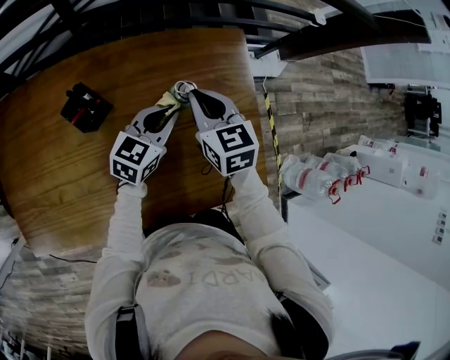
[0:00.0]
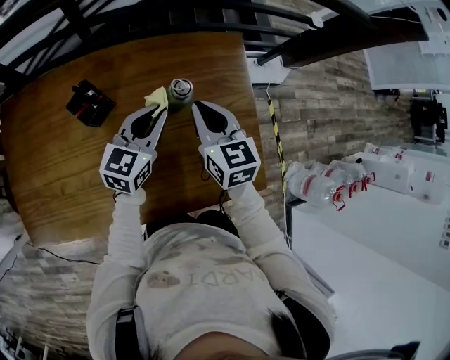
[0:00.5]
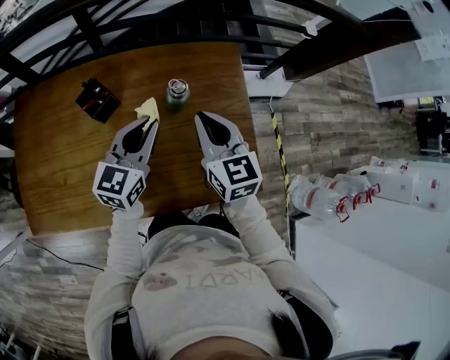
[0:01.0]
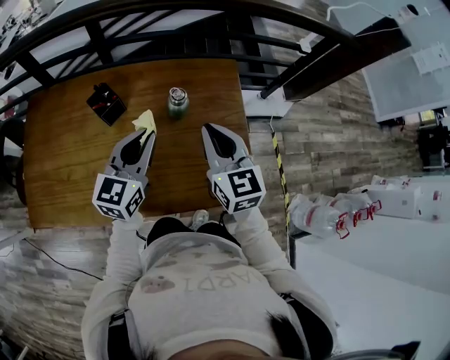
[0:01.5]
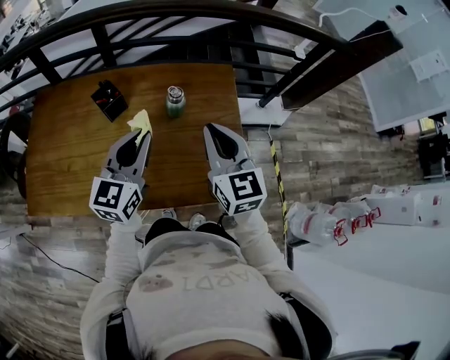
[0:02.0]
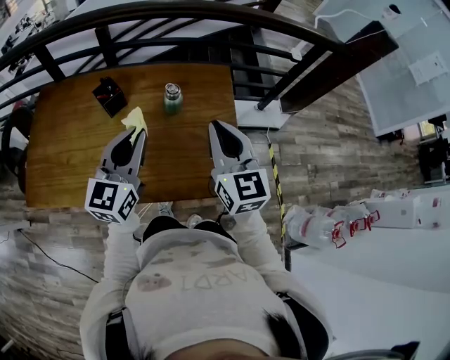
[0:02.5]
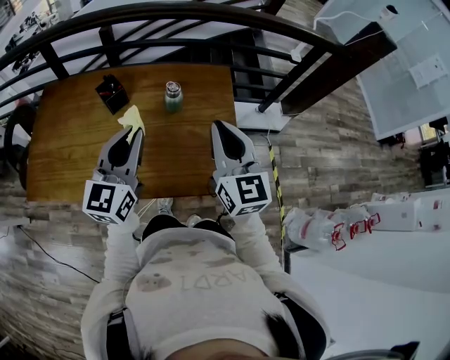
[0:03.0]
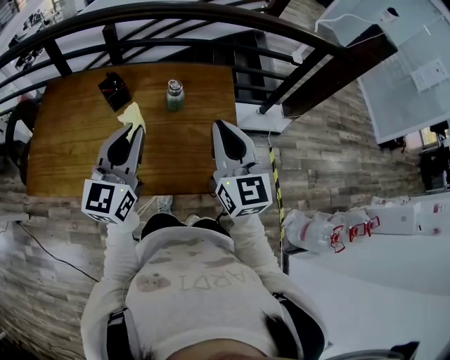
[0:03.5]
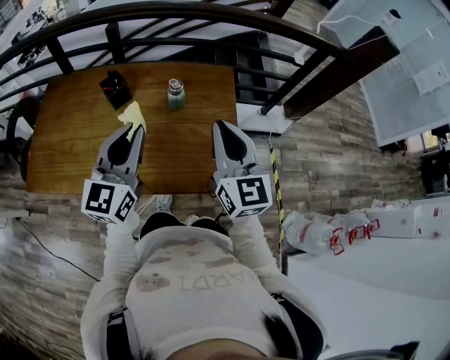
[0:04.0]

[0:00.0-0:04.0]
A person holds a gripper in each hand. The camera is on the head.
0:00.0 to 0:02.0: The right gripper moves backward, upward and to the right, about 25 cm, and swivels approximately 20 degrees. The left gripper moves upward and backward, approximately 25 cm, and rotates approximately 30 degrees.
0:02.0 to 0:04.0: Both grippers move backward and upward, about 10 cm.

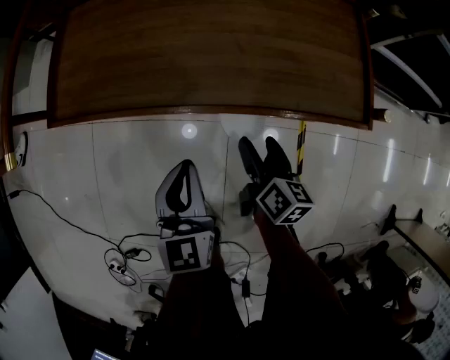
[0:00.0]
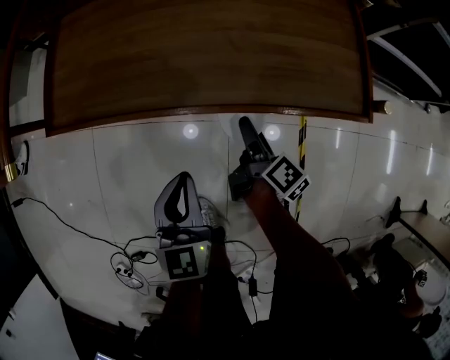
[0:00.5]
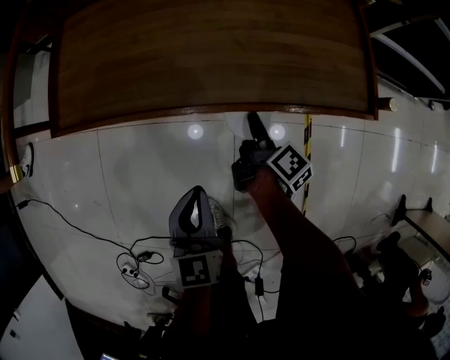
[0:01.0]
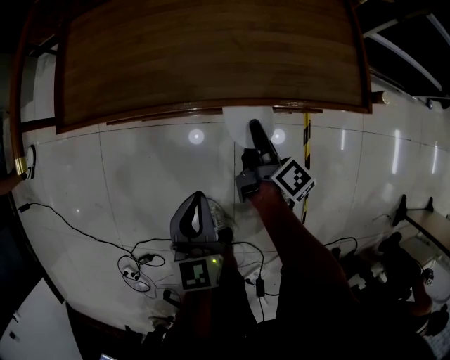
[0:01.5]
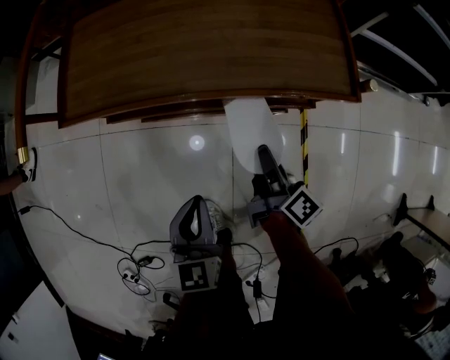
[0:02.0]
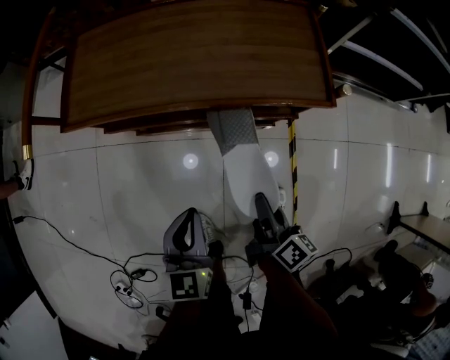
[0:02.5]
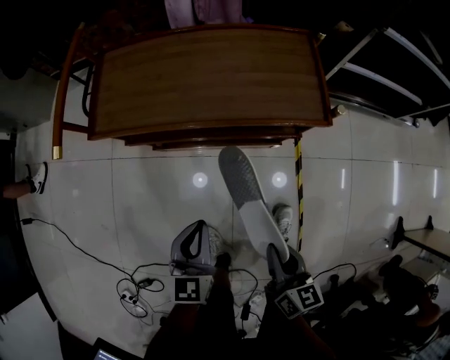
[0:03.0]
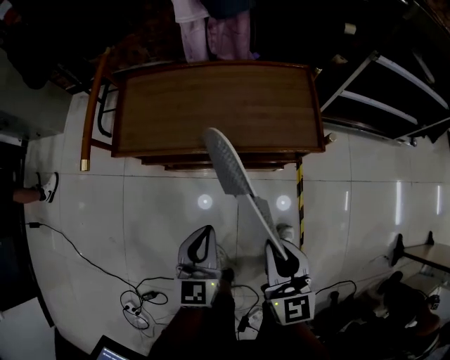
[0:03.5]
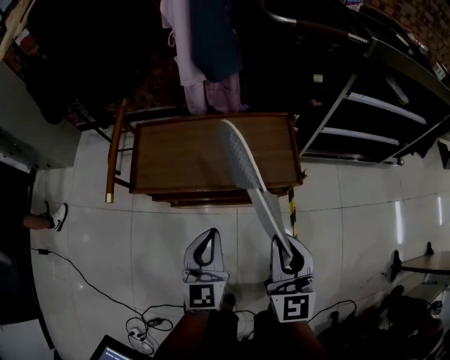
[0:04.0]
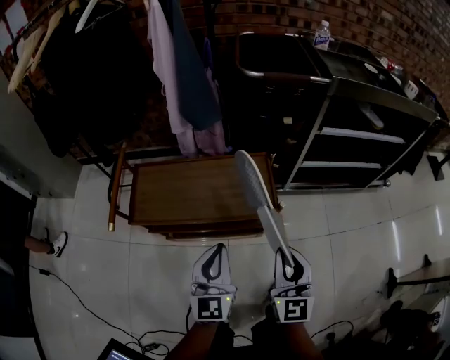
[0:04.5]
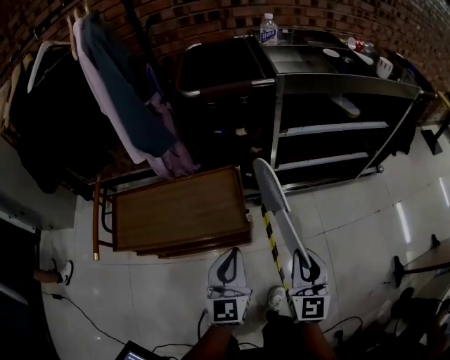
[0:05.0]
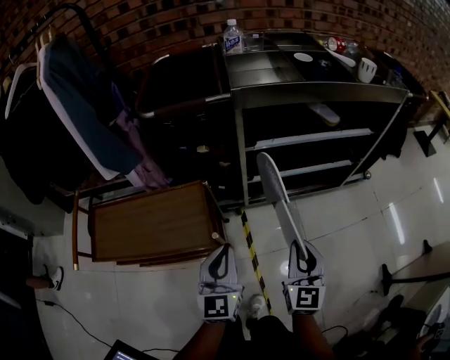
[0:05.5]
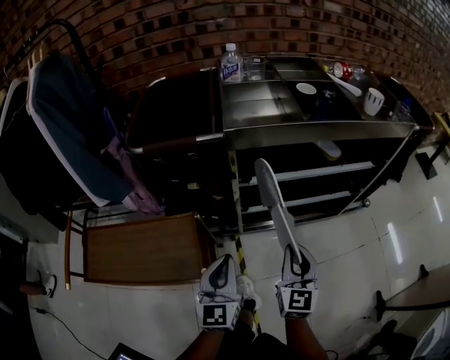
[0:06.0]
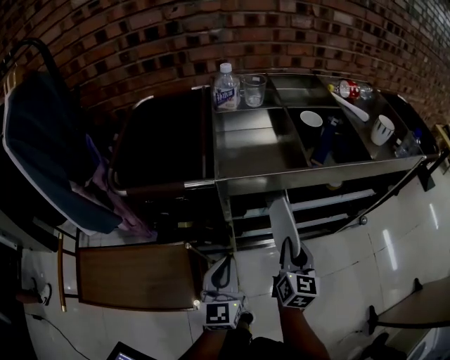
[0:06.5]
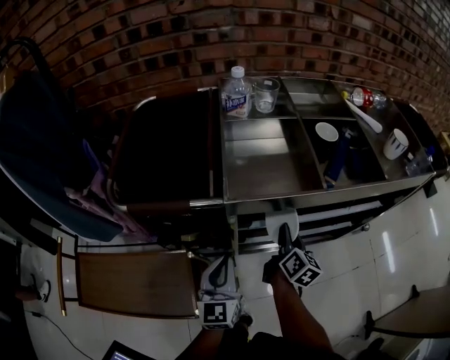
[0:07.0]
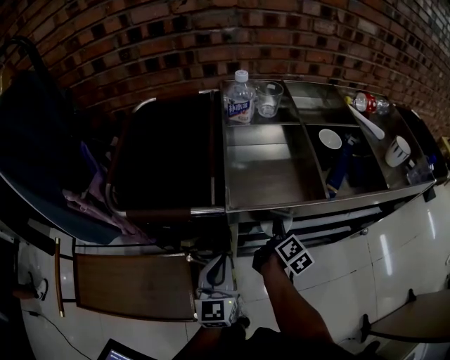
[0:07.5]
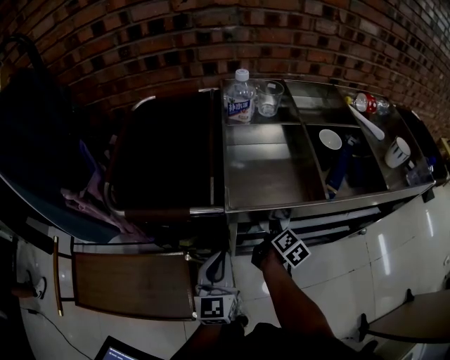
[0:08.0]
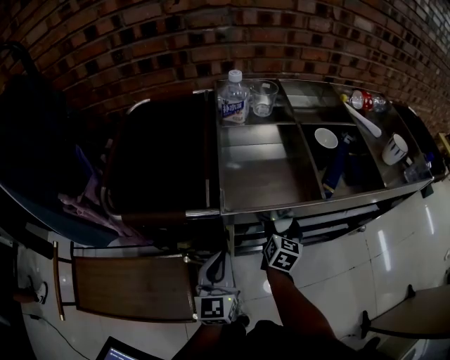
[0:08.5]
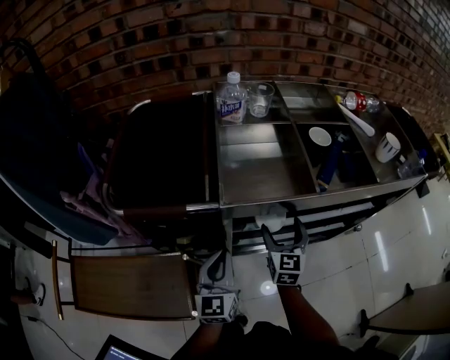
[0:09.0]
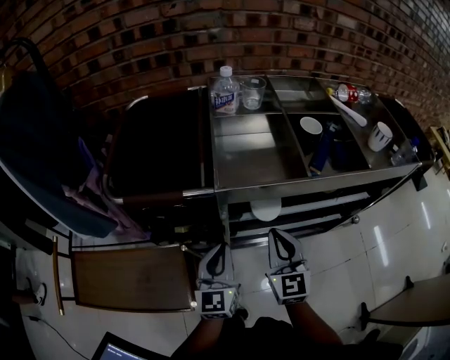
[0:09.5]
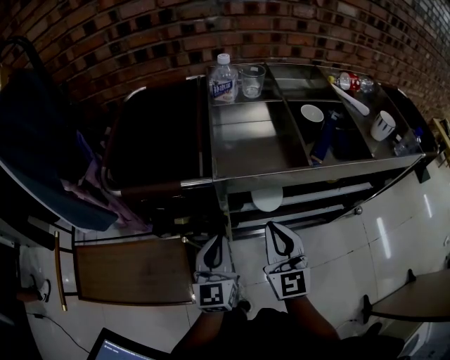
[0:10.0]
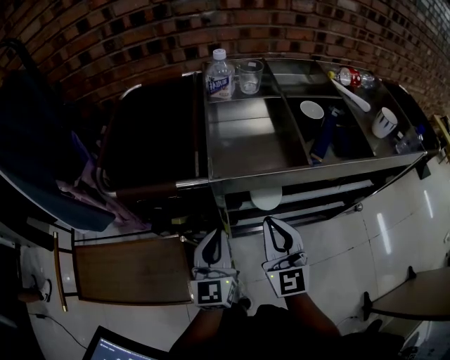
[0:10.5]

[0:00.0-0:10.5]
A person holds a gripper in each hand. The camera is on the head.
0:00.0 to 0:02.0: The right gripper moves backward, roughly 5 cm, turns by roughly 30 degrees, and closes up, while the left gripper moves backward, approximately 10 cm.
0:02.0 to 0:04.0: The left gripper is displaced upward by roughly 25 cm, while the right gripper is displaced upward by some 35 cm, and twists some 70 degrees counterclockwise, seen from behind.
0:04.0 to 0:06.5: The two grippers travel together, to the right and forward, roughly 60 cm. The right gripper turns by approximately 30 degrees.
0:06.5 to 0:08.5: The right gripper is displaced forward and downward by approximately 20 cm, and opens its fingers. Meanwhile the left gripper shifts some 10 cm forward.
0:08.5 to 0:10.5: The right gripper goes roughly 25 cm upward, backward and to the left, swivels approximately 40 degrees, and closes.

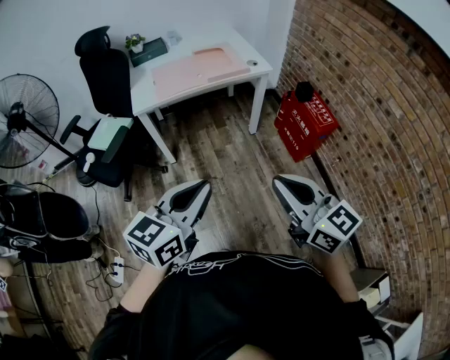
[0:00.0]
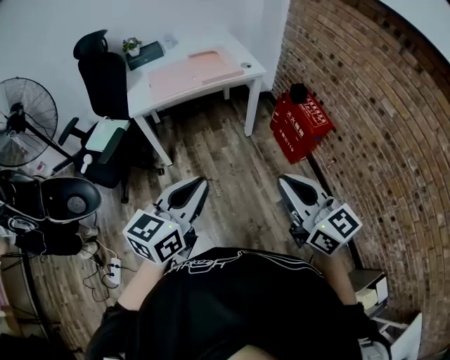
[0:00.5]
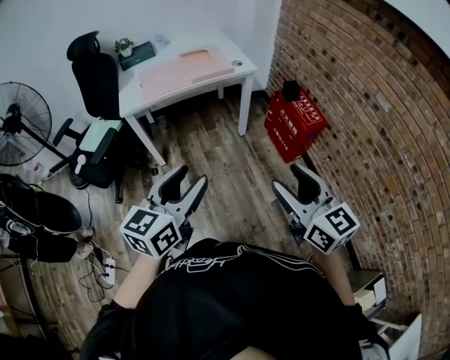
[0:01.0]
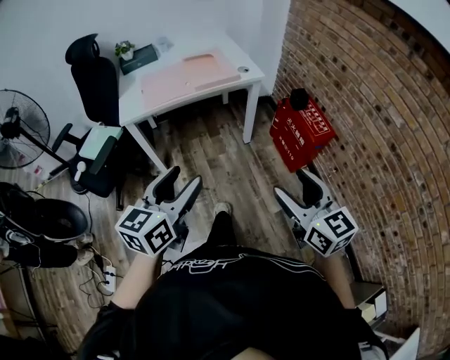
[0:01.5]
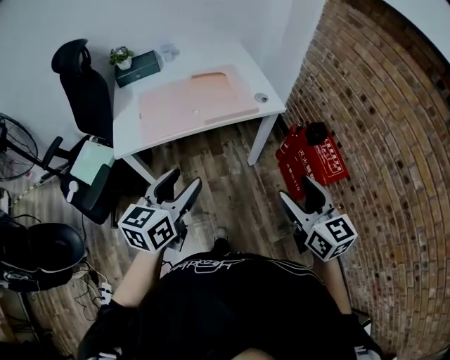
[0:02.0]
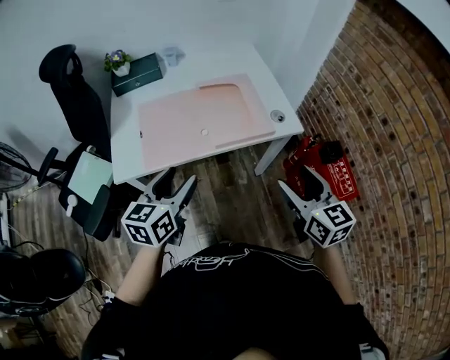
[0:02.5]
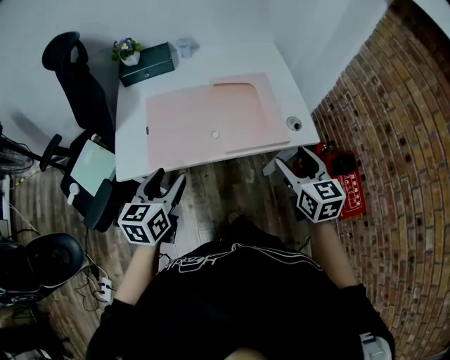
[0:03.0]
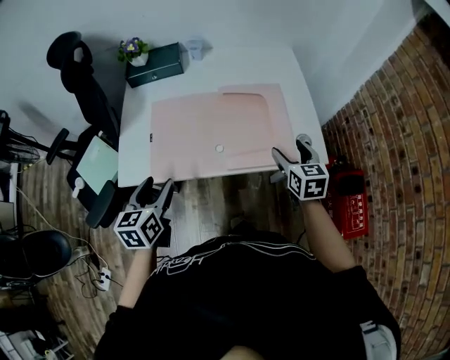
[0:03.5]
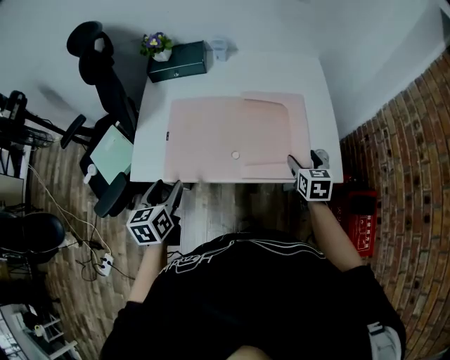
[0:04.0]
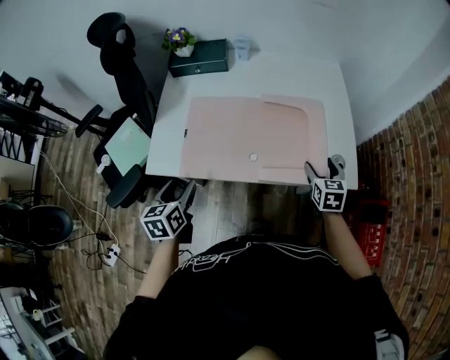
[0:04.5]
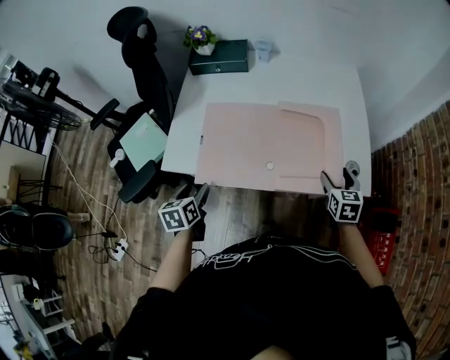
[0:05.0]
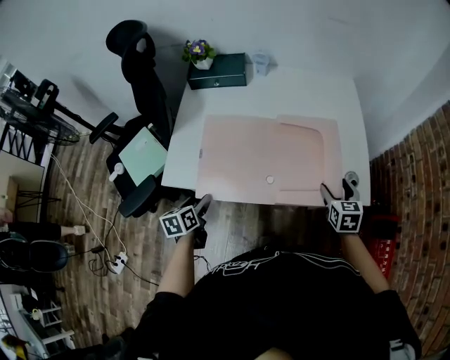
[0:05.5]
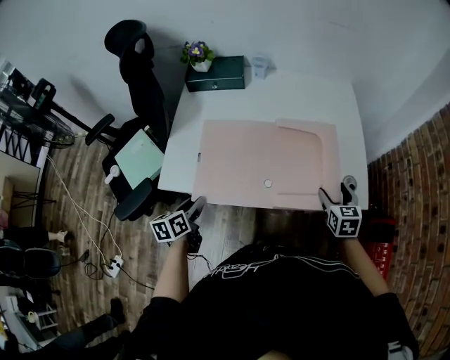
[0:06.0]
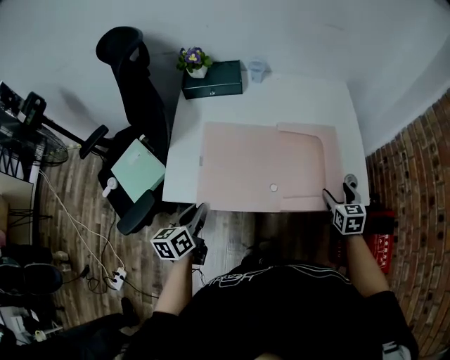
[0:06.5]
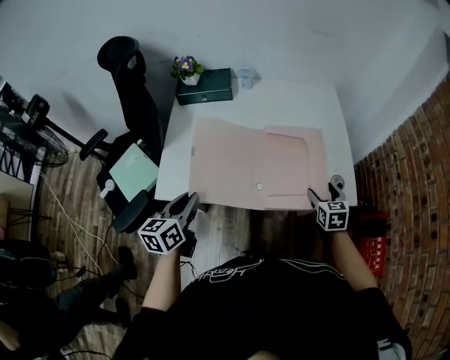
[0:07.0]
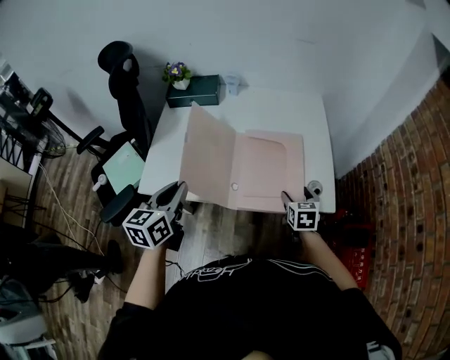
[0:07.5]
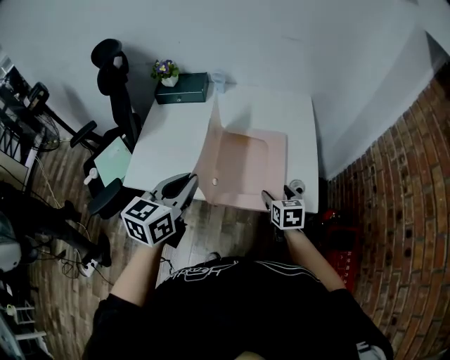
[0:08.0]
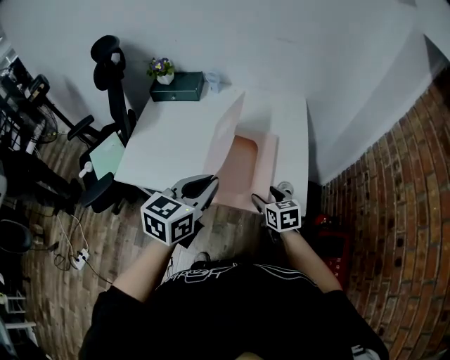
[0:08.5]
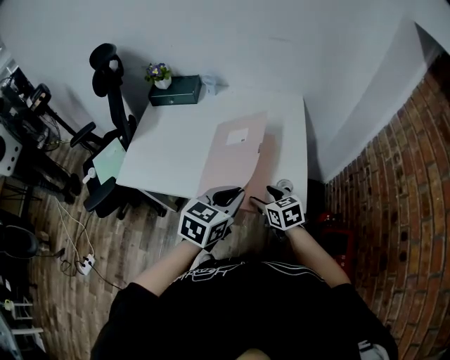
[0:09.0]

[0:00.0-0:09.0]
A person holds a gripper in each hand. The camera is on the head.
0:00.0 to 0:02.0: The grippers both shift forward by some 30 cm. The left gripper opens. Meanwhile the right gripper opens its fingers.
0:02.0 to 0:04.5: The left gripper shifts roughly 30 cm forward, downward and to the left, and swivels roughly 50 degrees, while the right gripper heads forward and downward, covering some 50 cm, and turns by roughly 30 degrees.
0:04.5 to 0:07.0: The left gripper shifts approximately 5 cm upward, and closes its fingers.
0:07.0 to 0:09.0: The right gripper rotates about 30 degrees, while the left gripper travels to the right by roughly 35 cm, and changes its angle by approximately 20 degrees.

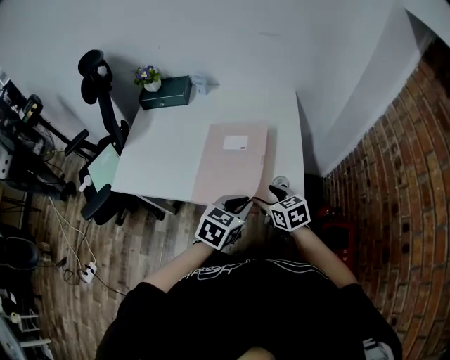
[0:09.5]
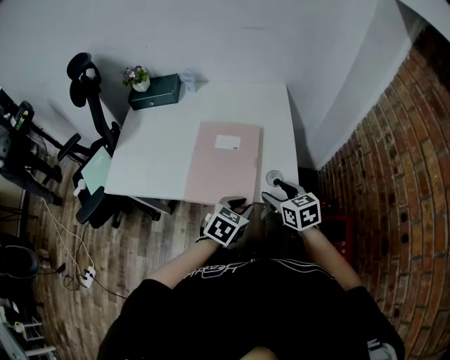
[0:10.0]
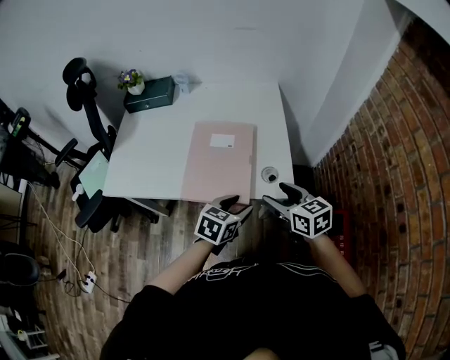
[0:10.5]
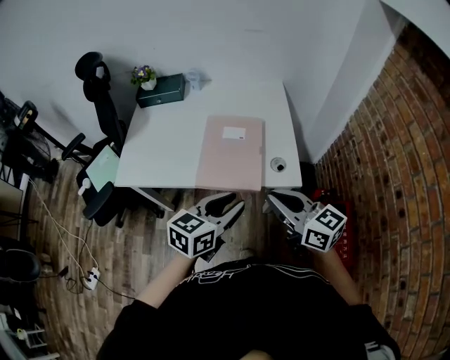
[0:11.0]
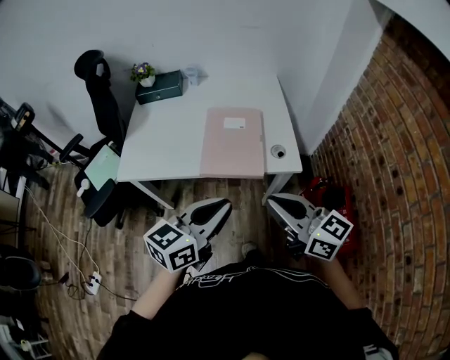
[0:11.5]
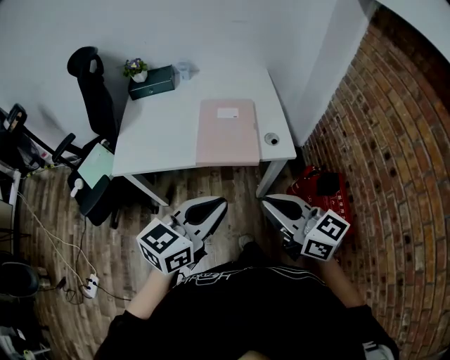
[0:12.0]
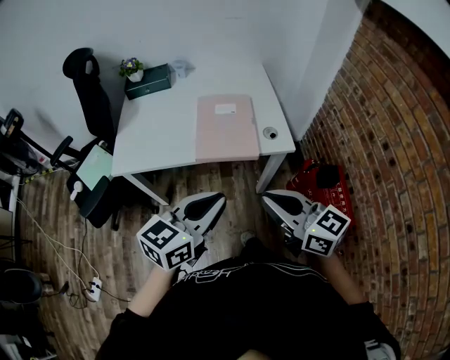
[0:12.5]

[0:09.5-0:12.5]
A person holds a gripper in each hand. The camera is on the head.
0:09.5 to 0:11.0: The right gripper moves upward and backward, some 25 cm, changes its angle by roughly 30 degrees, and closes. Meanwhile the left gripper moves backward and upward, approximately 15 cm.
0:11.0 to 0:12.5: The left gripper shifts about 15 cm backward, to the left and upward, and closes up, while the right gripper travels backward and to the left by roughly 15 cm.
